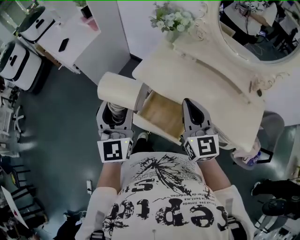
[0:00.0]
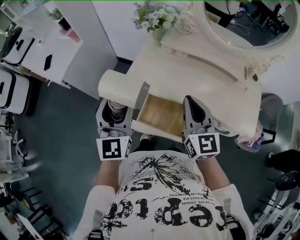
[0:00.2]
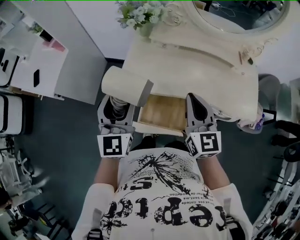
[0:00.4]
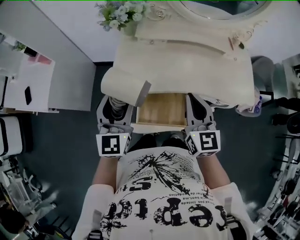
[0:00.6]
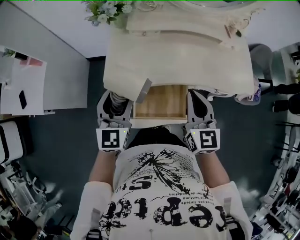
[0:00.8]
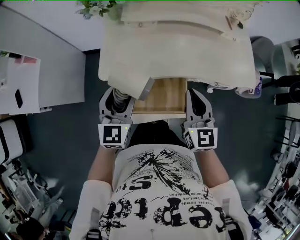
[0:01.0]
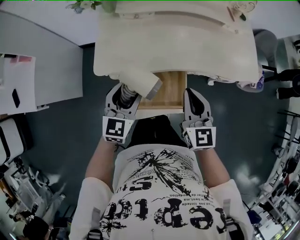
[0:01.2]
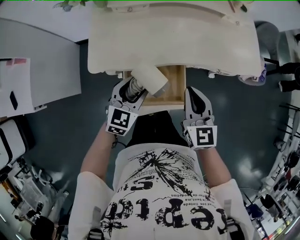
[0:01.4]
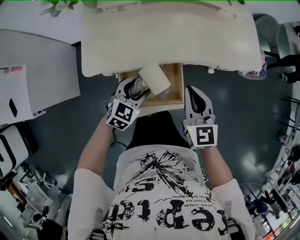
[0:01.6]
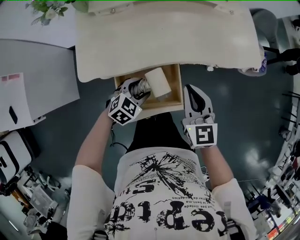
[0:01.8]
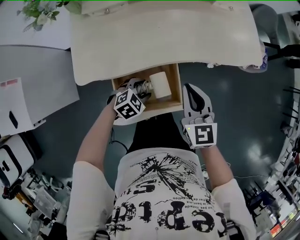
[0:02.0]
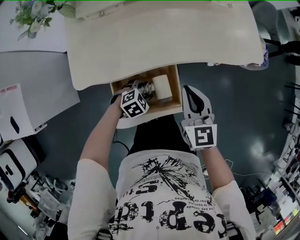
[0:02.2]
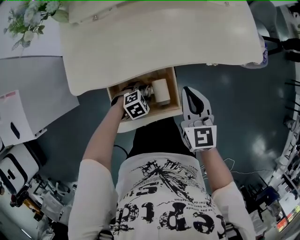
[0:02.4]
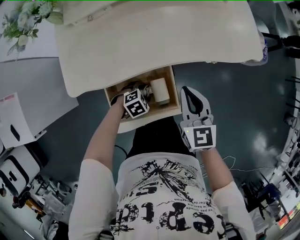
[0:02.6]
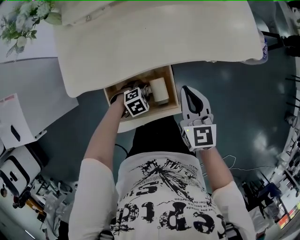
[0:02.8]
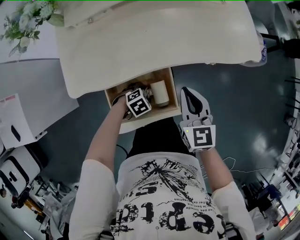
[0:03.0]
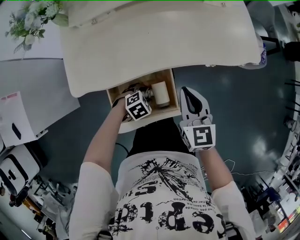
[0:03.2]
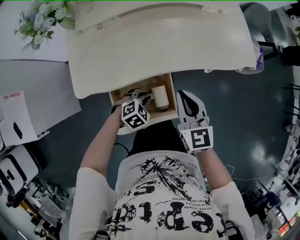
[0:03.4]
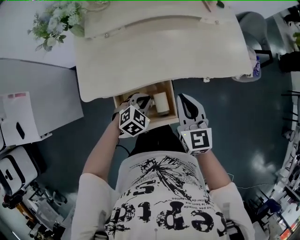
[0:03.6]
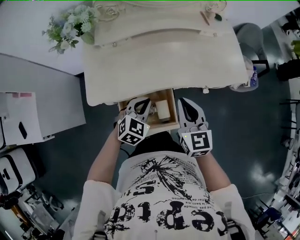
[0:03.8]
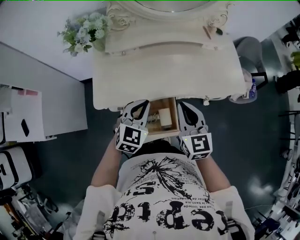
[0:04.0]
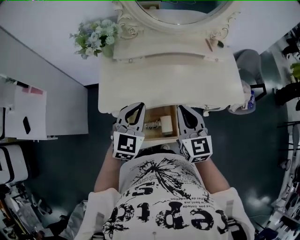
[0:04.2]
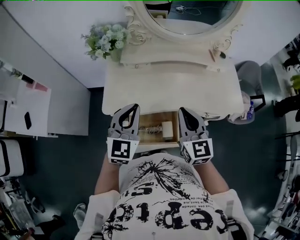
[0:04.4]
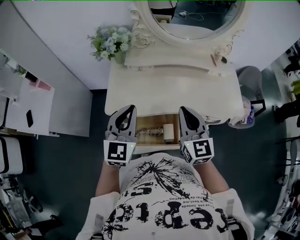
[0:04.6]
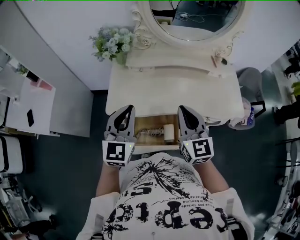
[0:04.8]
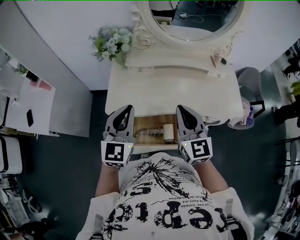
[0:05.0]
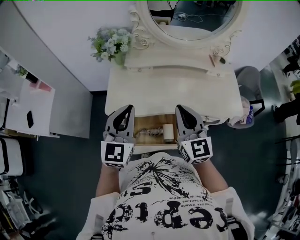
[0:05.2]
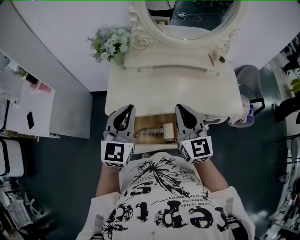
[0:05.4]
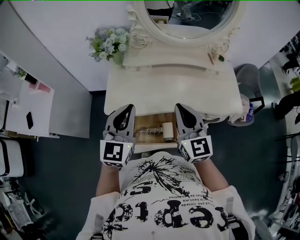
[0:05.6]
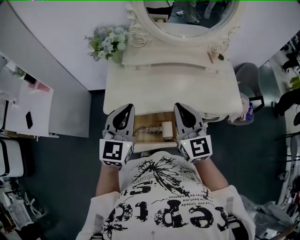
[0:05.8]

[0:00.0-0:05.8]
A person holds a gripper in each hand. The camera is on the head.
0.0 to 1.4 s: The right gripper shifts roughly 15 cm downward, and changes its angle by some 40 degrees, while the left gripper travels downward by approximately 25 cm, and tilts its fingers about 30 degrees downward.
1.4 to 2.8 s: The left gripper moves downward, approximately 25 cm, and tips its fingers downward by approximately 40 degrees; the right gripper heads downward, covering roughly 5 cm.
2.8 to 4.4 s: The left gripper goes approximately 40 cm upward, points its fingers roughly 60 degrees further upward, and closes. The right gripper travels upward by approximately 20 cm, and rotates roughly 20 degrees.
4.4 to 5.8 s: The grippers stay close to where they were, moving slightly.

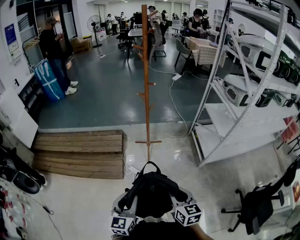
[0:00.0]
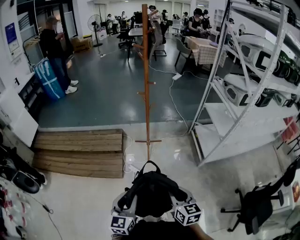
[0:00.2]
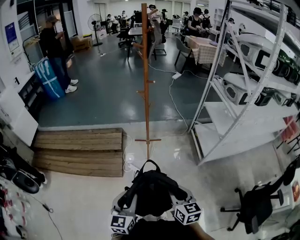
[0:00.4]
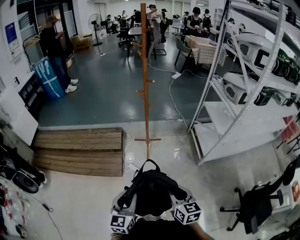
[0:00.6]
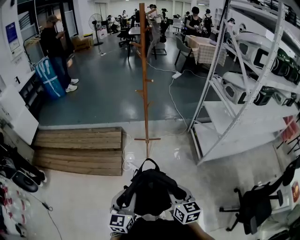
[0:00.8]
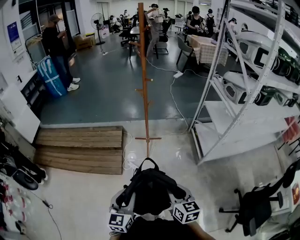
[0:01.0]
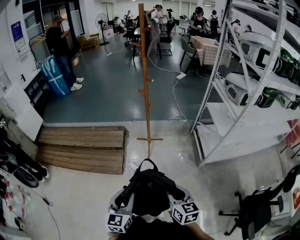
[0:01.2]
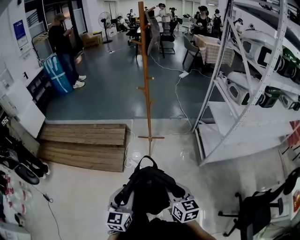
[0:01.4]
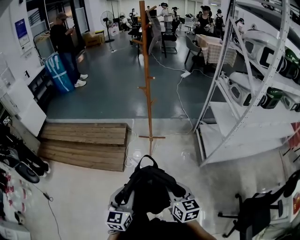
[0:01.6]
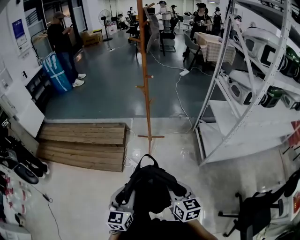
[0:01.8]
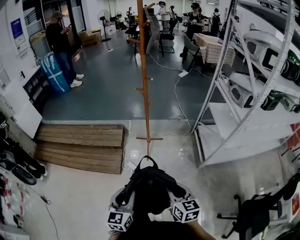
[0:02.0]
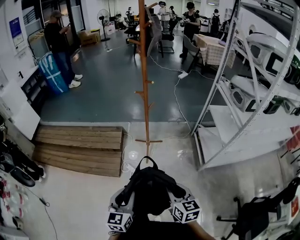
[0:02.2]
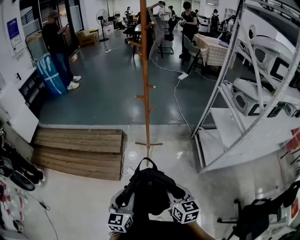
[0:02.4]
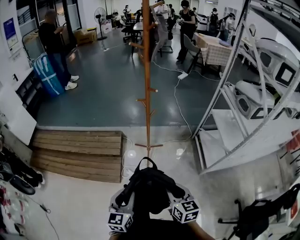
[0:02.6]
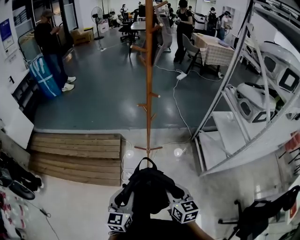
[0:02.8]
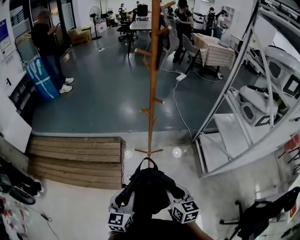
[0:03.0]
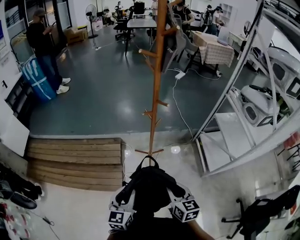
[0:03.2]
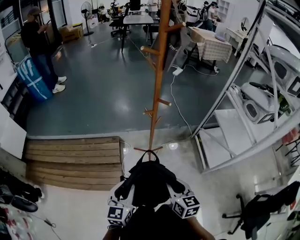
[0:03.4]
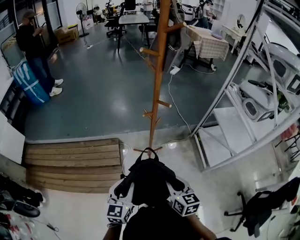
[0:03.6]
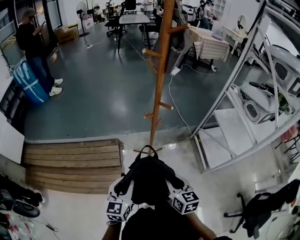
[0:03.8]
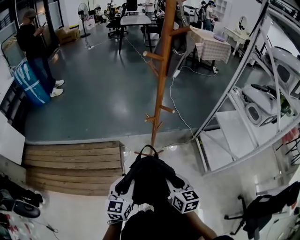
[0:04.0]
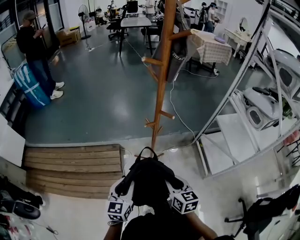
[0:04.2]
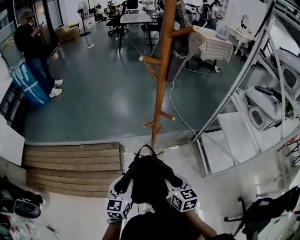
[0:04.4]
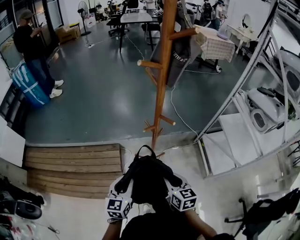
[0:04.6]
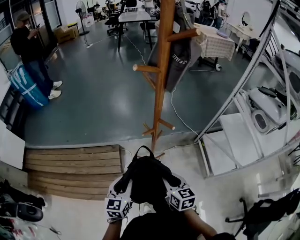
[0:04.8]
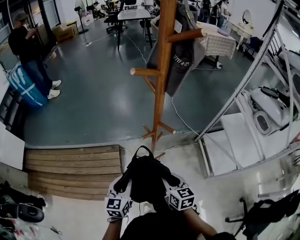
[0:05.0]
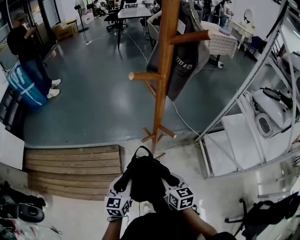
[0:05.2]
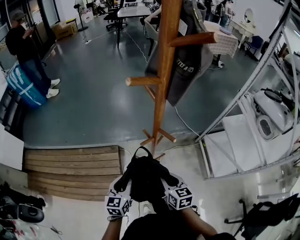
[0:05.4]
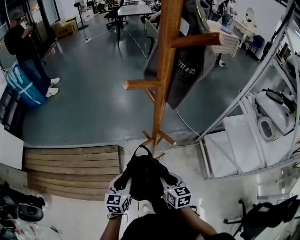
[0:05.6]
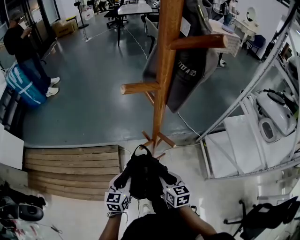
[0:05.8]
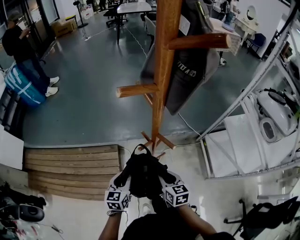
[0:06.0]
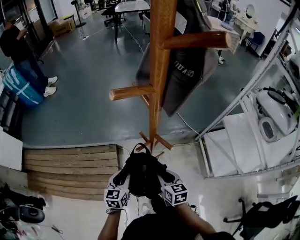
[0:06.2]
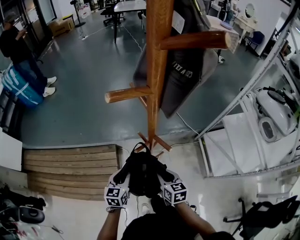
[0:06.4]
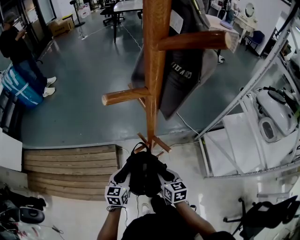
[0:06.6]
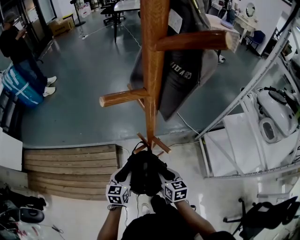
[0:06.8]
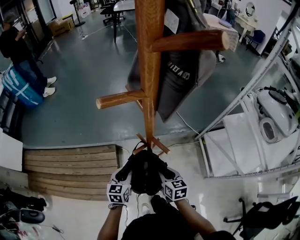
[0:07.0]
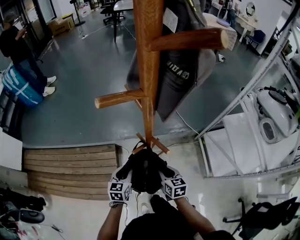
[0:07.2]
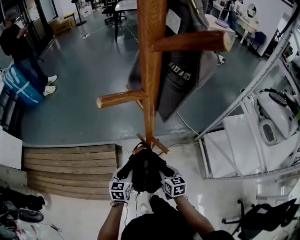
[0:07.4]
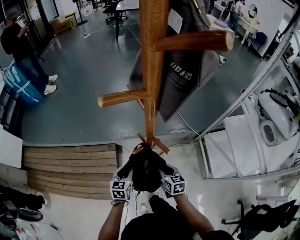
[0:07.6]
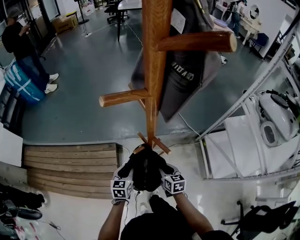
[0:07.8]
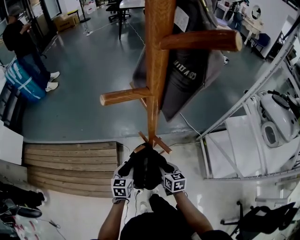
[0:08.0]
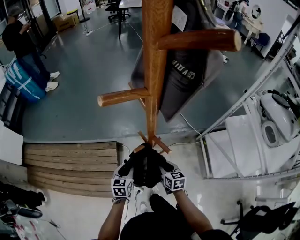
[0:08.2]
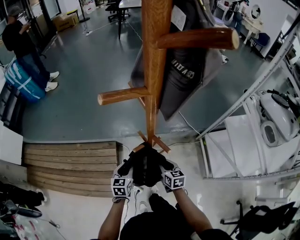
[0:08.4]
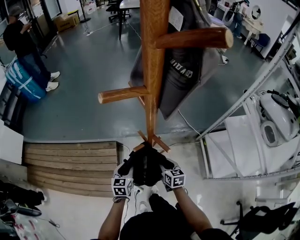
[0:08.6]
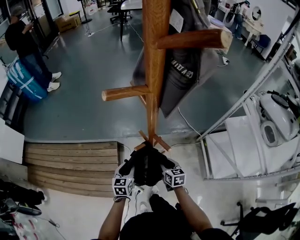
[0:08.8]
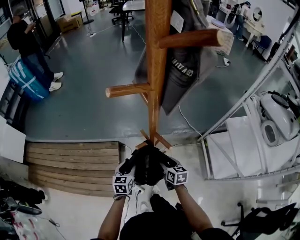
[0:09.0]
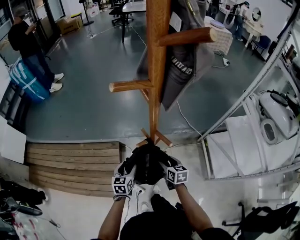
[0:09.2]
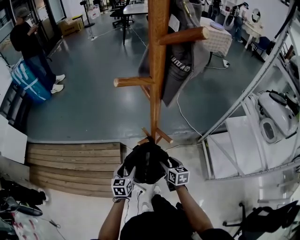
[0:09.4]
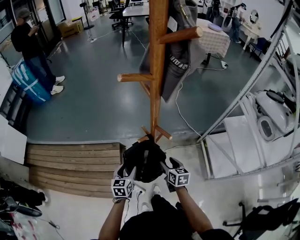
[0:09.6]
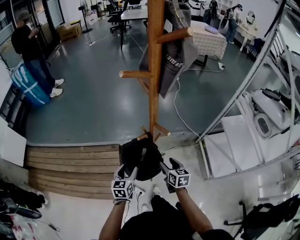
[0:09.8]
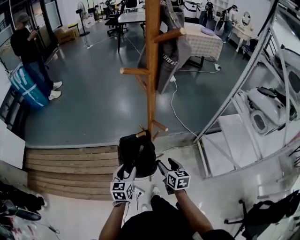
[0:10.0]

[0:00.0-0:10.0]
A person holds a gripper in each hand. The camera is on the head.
0.0 to 1.4 s: The two grippers go approximately 5 cm to the right.
1.4 to 2.8 s: Both grippers move forward, roughly 20 cm.
2.8 to 4.2 s: The left gripper is displaced forward by roughly 20 cm, while the right gripper shifts approximately 20 cm forward and to the left.
4.2 to 5.8 s: Both grippers move forward and downward, about 20 cm.
5.8 to 7.2 s: The right gripper moves downward, some 5 cm; the left gripper travels forward and downward by some 10 cm.
7.2 to 8.6 s: The right gripper moves approximately 5 cm.
8.6 to 10.0 s: The grippers both shift backward and upward by about 10 cm. The left gripper opens its fingers. Meanwhile the right gripper opens its fingers.

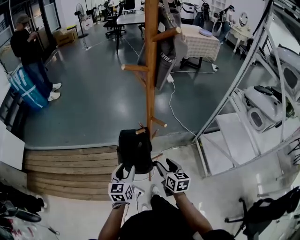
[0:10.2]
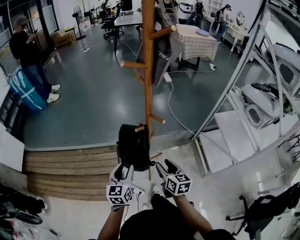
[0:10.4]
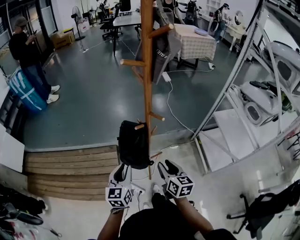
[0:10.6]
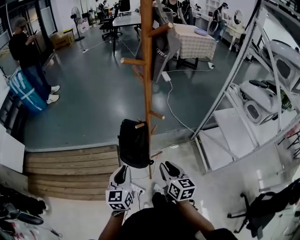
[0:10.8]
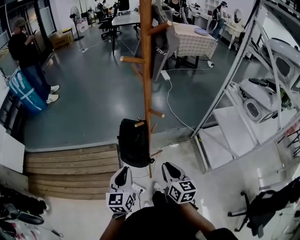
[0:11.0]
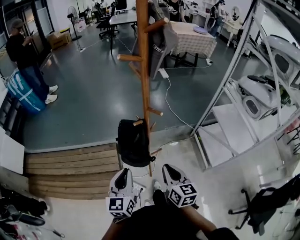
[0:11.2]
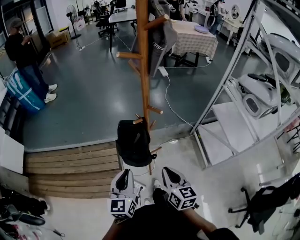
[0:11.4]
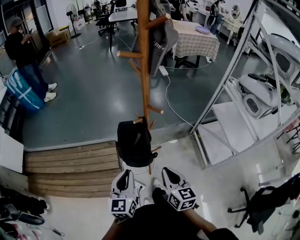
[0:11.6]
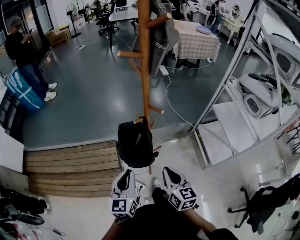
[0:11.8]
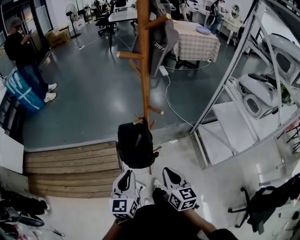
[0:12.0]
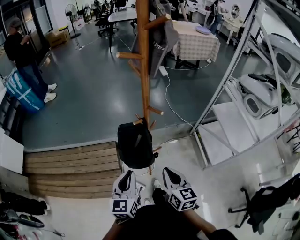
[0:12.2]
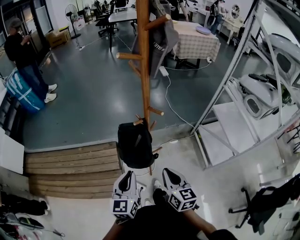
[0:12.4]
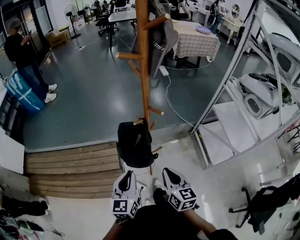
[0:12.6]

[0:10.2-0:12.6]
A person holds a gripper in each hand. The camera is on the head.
10.2 to 11.4 s: The left gripper is displaced upward and backward by some 15 cm, and closes its fingers. The right gripper is displaced backward and upward by roughly 15 cm, and closes its fingers.
11.4 to 12.6 s: The grippers make only small movements.

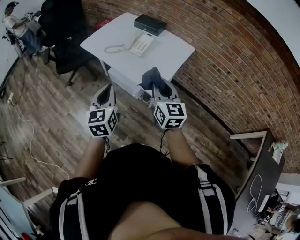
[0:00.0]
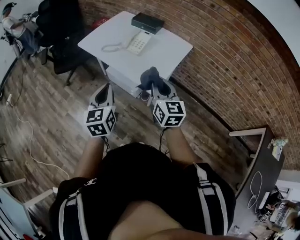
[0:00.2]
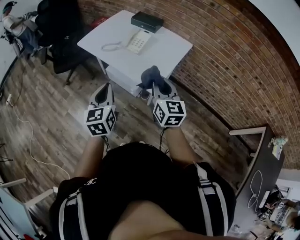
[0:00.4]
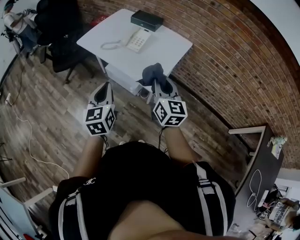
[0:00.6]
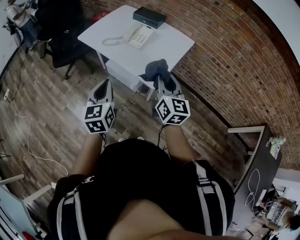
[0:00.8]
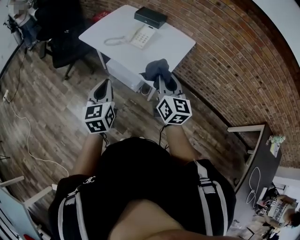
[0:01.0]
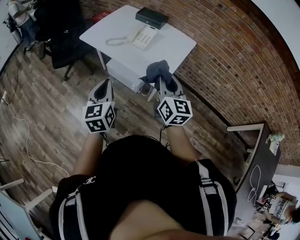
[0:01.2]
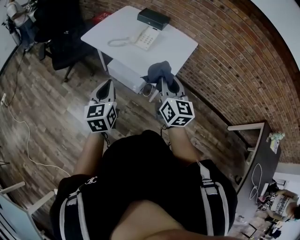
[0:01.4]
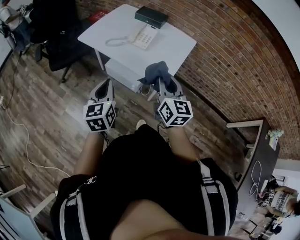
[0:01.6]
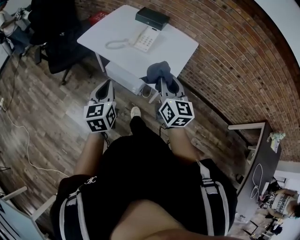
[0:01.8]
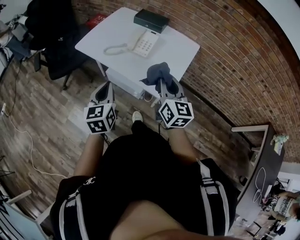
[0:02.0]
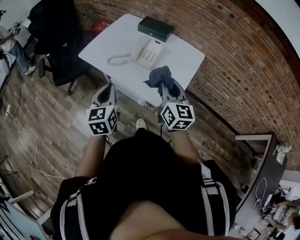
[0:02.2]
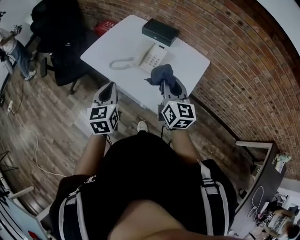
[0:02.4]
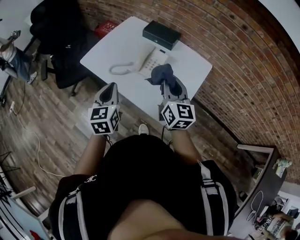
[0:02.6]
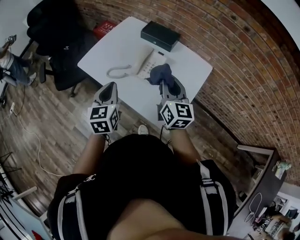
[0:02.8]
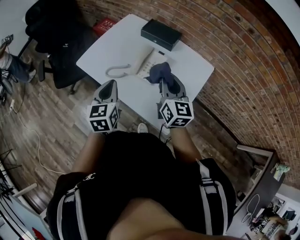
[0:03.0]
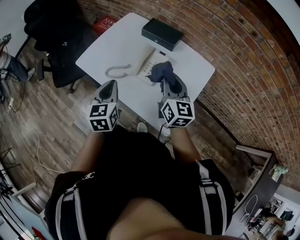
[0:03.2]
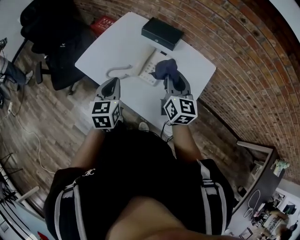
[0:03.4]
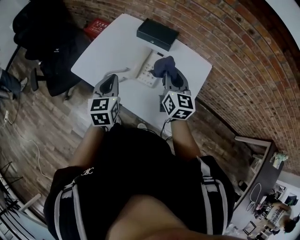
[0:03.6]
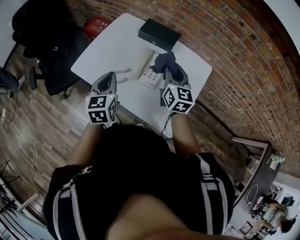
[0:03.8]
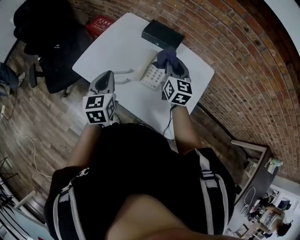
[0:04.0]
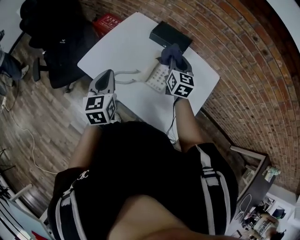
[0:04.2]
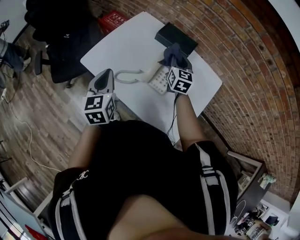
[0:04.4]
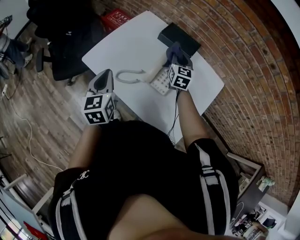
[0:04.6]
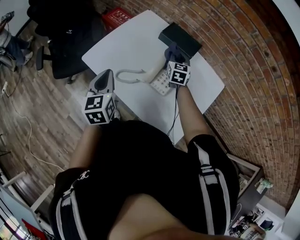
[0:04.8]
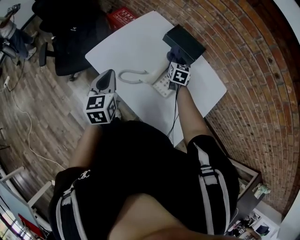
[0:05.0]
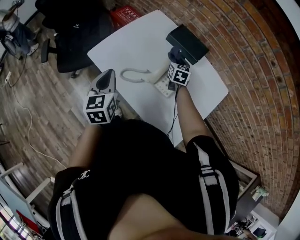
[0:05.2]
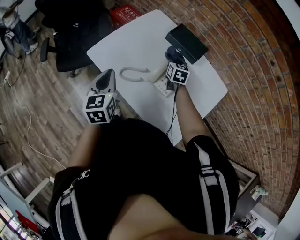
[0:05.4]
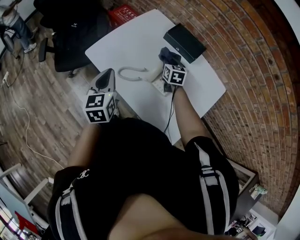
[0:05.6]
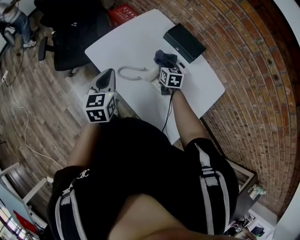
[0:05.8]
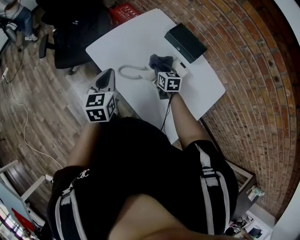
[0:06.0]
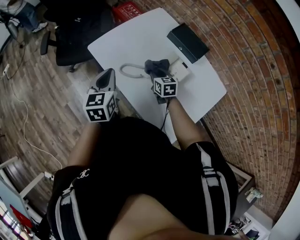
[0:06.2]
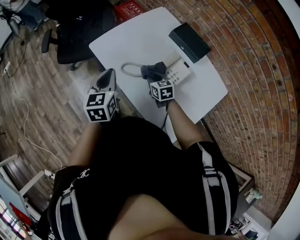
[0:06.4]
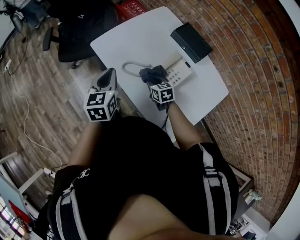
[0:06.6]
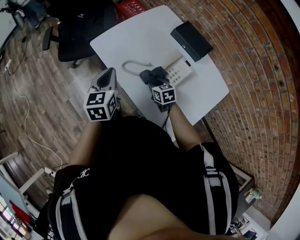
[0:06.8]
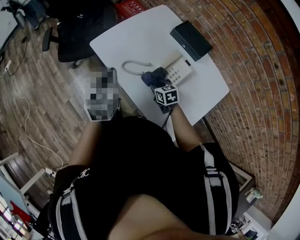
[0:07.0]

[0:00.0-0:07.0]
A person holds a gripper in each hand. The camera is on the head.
0.0 to 1.4 s: Both grippers move to the left, approximately 5 cm.
1.4 to 2.8 s: The two grippers go about 30 cm forward.
2.8 to 4.2 s: The right gripper is displaced forward by roughly 20 cm, while the left gripper moves forward and to the left, approximately 15 cm.
4.2 to 5.6 s: The right gripper moves downward and to the left, roughly 15 cm, and swivels some 30 degrees.
5.6 to 7.0 s: The right gripper travels backward, to the left and downward by some 20 cm, and changes its angle by about 30 degrees.
